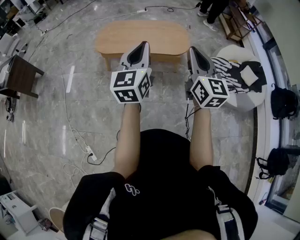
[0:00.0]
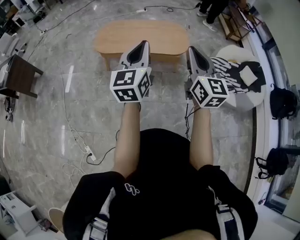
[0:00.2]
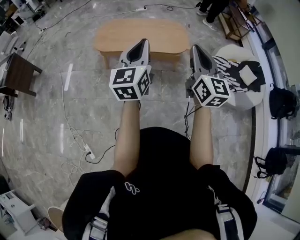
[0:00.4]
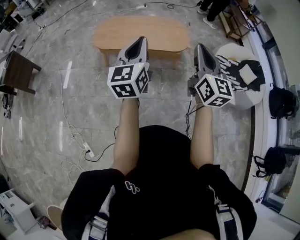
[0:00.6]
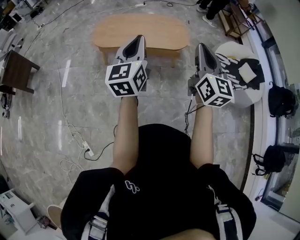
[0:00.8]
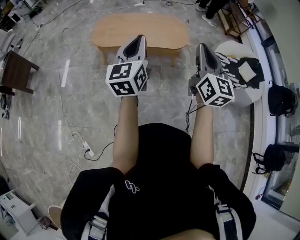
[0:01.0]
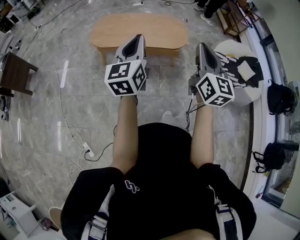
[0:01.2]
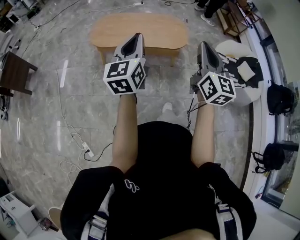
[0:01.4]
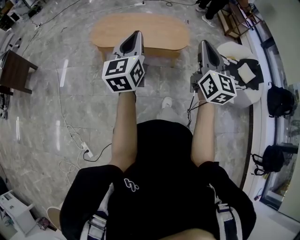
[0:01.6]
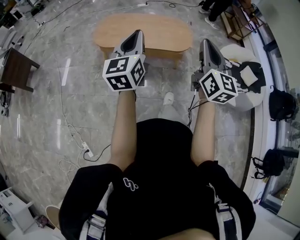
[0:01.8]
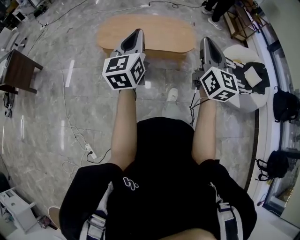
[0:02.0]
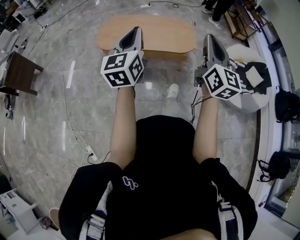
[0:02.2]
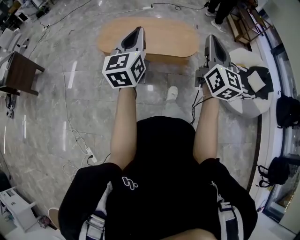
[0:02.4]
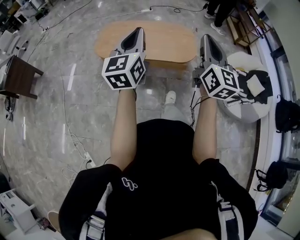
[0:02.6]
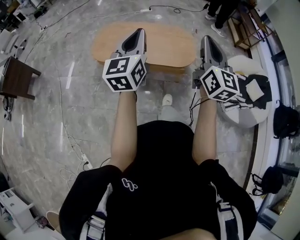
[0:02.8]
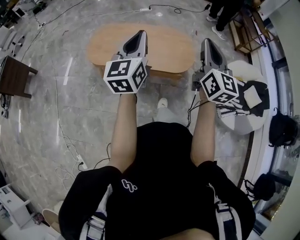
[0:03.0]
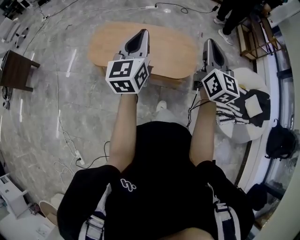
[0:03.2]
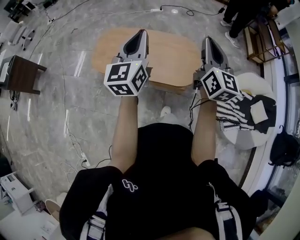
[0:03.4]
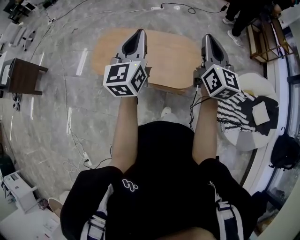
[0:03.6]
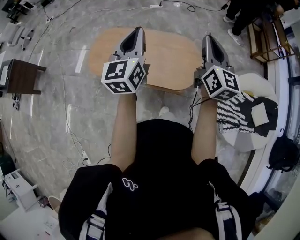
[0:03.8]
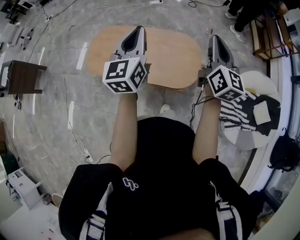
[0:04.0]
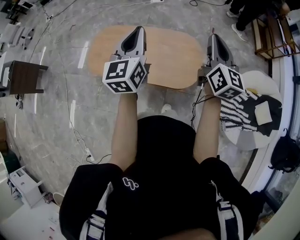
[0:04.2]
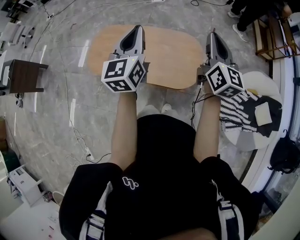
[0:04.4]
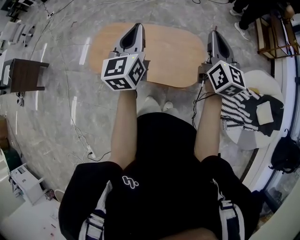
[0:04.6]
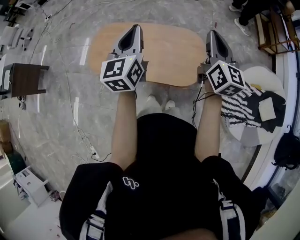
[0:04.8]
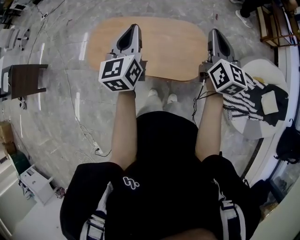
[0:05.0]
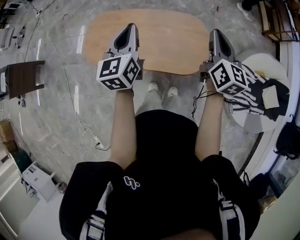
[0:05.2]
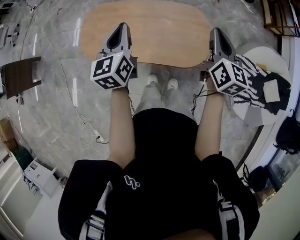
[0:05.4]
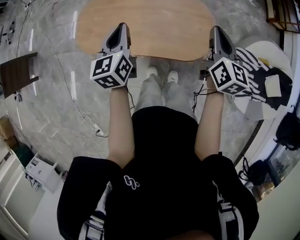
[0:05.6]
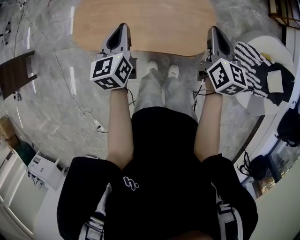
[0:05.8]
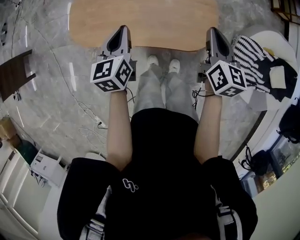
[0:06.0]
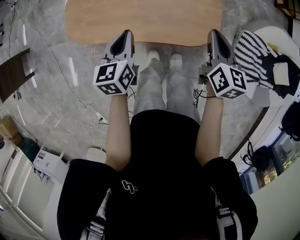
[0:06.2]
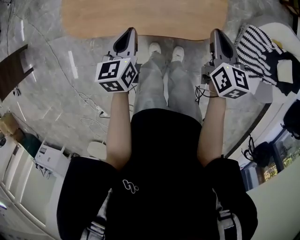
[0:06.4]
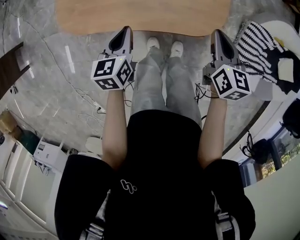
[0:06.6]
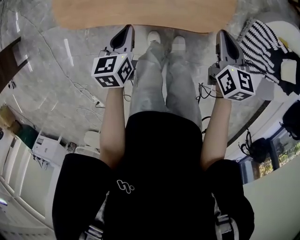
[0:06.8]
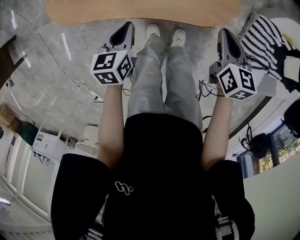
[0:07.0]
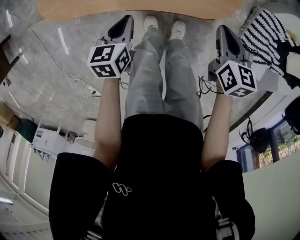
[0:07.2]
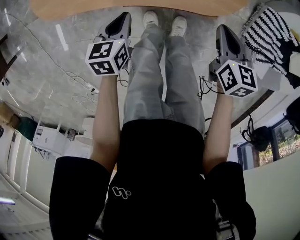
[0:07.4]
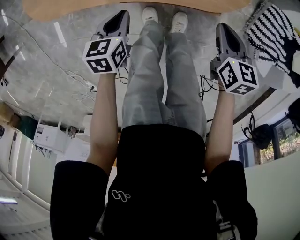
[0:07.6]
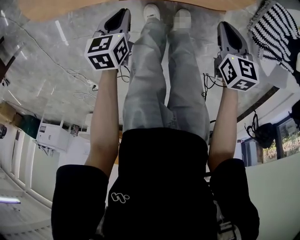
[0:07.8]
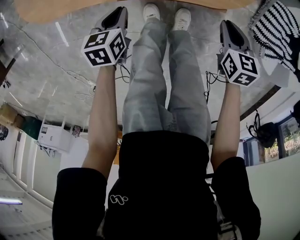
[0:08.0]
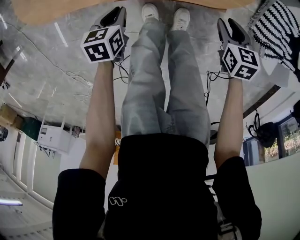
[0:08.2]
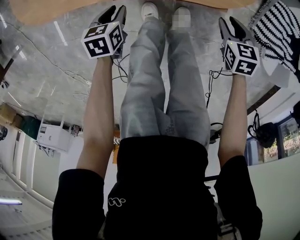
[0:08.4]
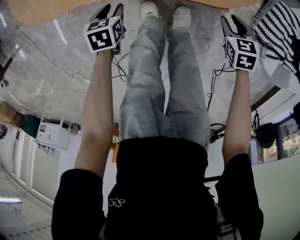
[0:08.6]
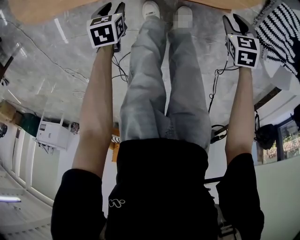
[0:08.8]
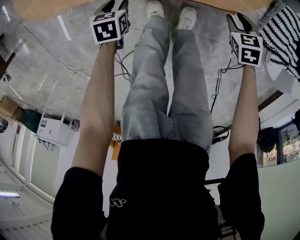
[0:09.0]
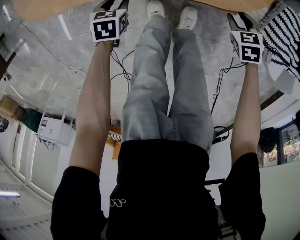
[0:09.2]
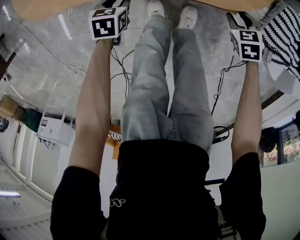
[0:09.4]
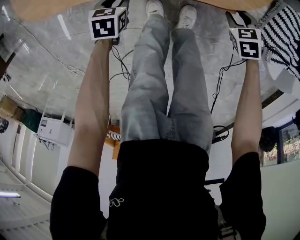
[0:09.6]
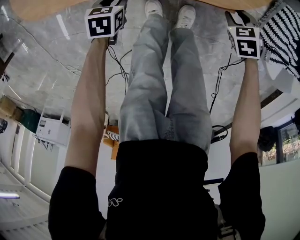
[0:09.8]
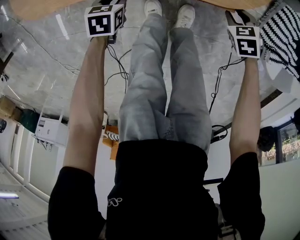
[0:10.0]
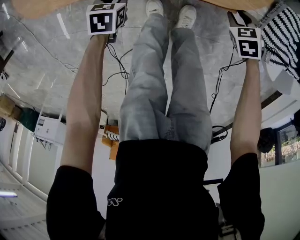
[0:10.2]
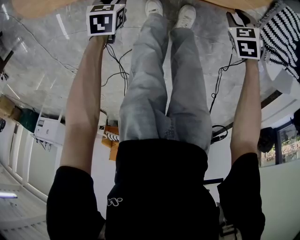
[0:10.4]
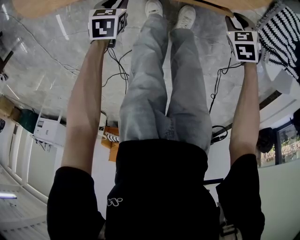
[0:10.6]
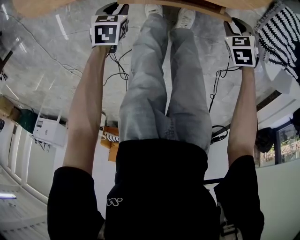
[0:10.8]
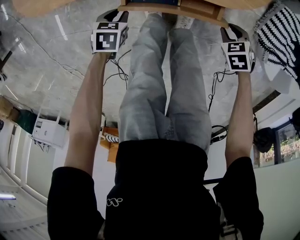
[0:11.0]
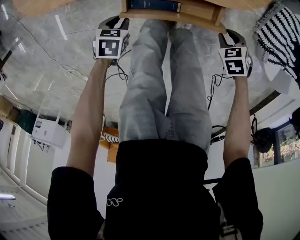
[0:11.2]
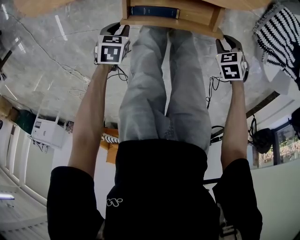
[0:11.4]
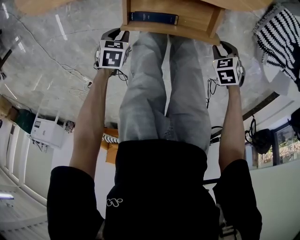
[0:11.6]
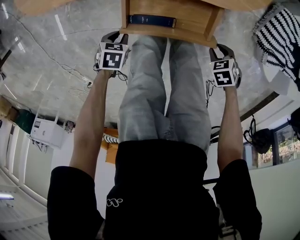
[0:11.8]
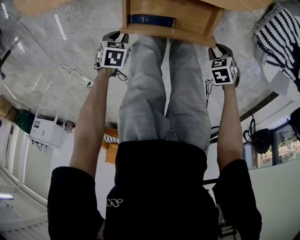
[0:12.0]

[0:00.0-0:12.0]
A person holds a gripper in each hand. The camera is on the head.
0.0 to 1.6 s: The left gripper moves to the left, approximately 5 cm.
1.6 to 3.0 s: The two grippers go about 25 cm forward.
3.0 to 4.4 s: Both grippers move forward, some 30 cm.
4.4 to 6.0 s: Both grippers travel together downward, roughly 25 cm. The right gripper rotates roughly 30 degrees. The left gripper turns by some 30 degrees.
6.0 to 7.6 s: The left gripper moves downward, roughly 30 cm, and rotates some 30 degrees, while the right gripper goes approximately 30 cm downward and backward, and swivels roughly 30 degrees.
7.6 to 9.0 s: Both grippers travel together downward, some 15 cm. The right gripper rotates roughly 40 degrees, and opens its fingers; the left gripper opens its fingers.
9.0 to 10.4 s: The grippers stay close to where they were, moving slightly.
10.4 to 12.0 s: The left gripper ends up roughly 20 cm from where it was; the right gripper ends up roughly 20 cm from where it was.

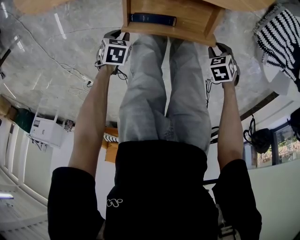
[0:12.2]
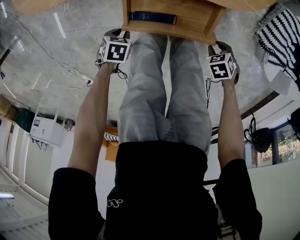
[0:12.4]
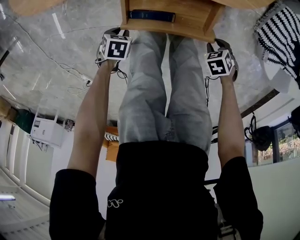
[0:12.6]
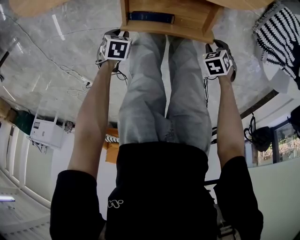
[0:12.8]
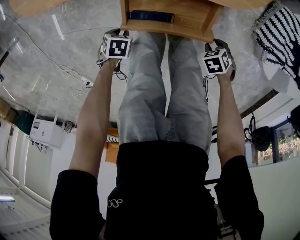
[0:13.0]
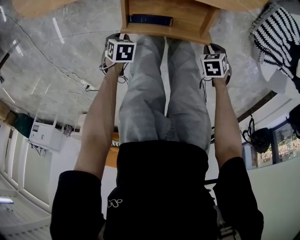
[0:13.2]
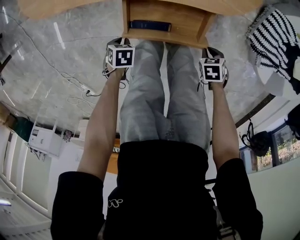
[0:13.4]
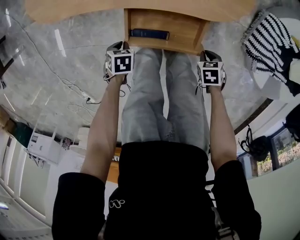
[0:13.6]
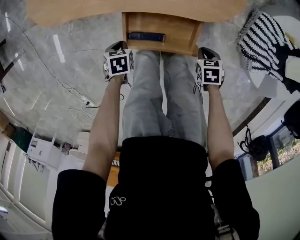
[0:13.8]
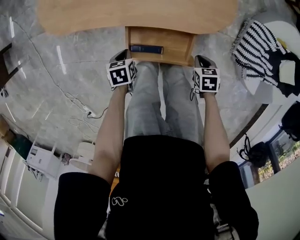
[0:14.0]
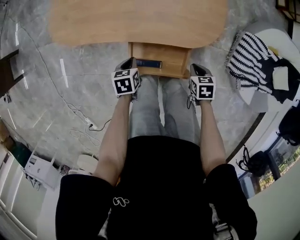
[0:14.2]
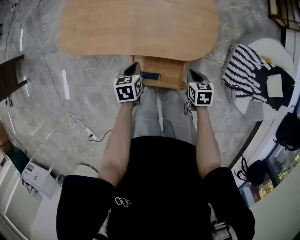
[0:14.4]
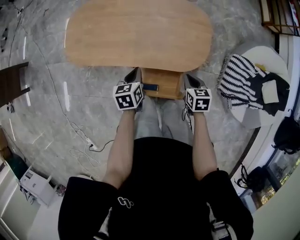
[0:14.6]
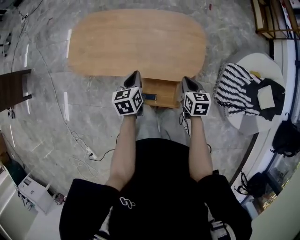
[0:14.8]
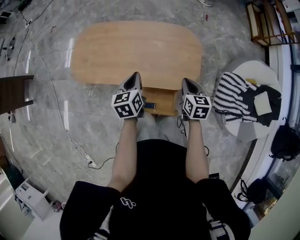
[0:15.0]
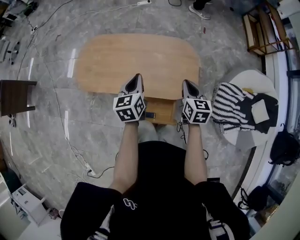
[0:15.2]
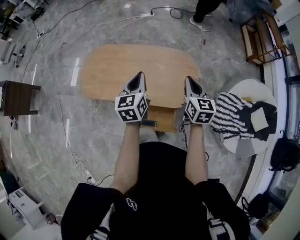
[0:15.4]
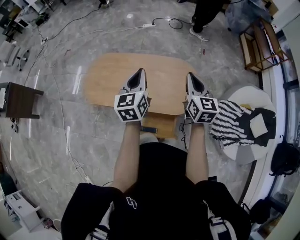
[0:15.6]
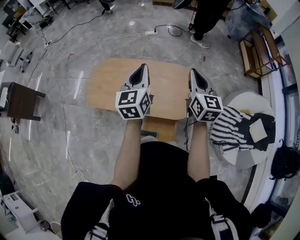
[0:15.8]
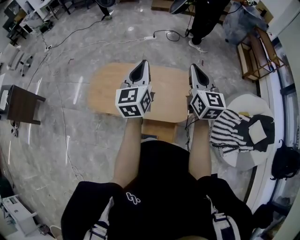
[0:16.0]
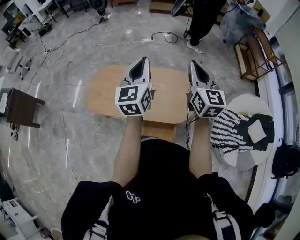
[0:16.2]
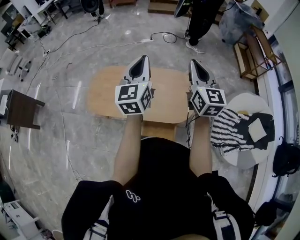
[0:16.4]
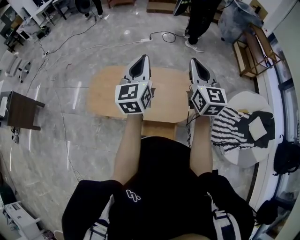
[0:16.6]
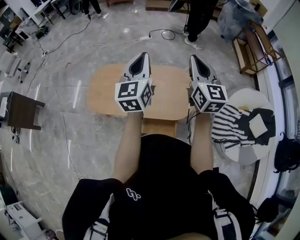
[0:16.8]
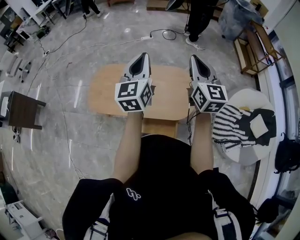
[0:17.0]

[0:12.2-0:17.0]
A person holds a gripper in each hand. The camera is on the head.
12.2 to 13.8 s: The left gripper ends up some 10 cm from where it was, and turns by about 20 degrees. The right gripper shifts by approximately 10 cm, swivels approximately 30 degrees, and closes up.
13.8 to 15.4 s: Both grippers move upward, about 50 cm. The right gripper tips its fingers upward by roughly 60 degrees. The left gripper angles its fingers upward, by approximately 60 degrees.
15.4 to 17.0 s: Both grippers move upward, about 20 cm. The right gripper swivels roughly 20 degrees. Meanwhile the left gripper rotates roughly 20 degrees.

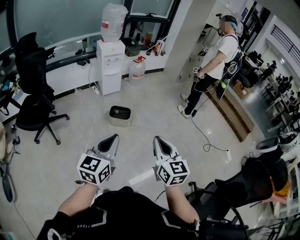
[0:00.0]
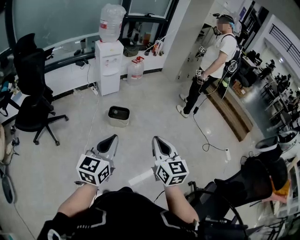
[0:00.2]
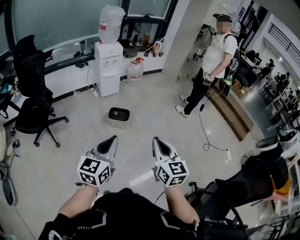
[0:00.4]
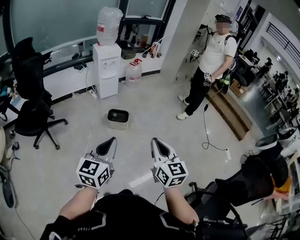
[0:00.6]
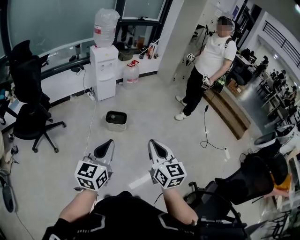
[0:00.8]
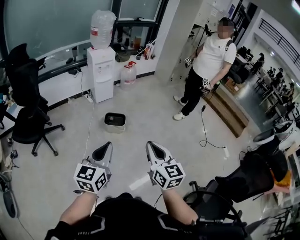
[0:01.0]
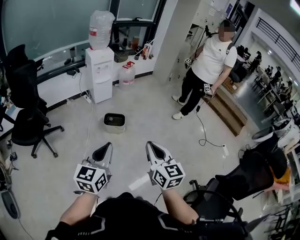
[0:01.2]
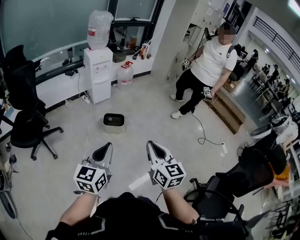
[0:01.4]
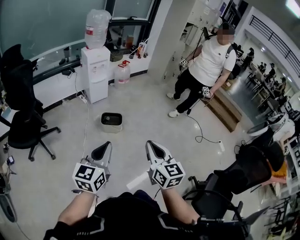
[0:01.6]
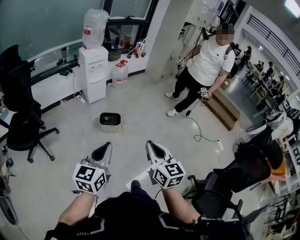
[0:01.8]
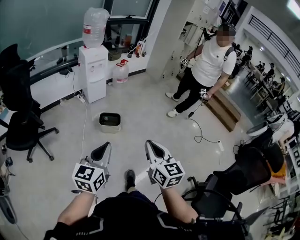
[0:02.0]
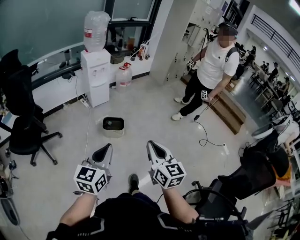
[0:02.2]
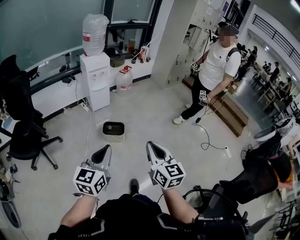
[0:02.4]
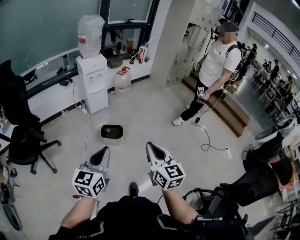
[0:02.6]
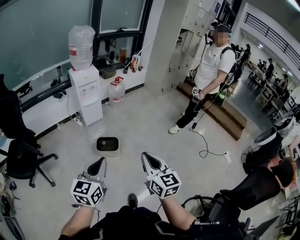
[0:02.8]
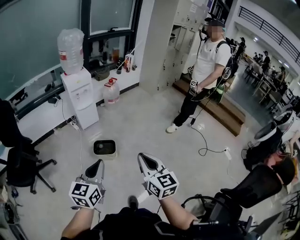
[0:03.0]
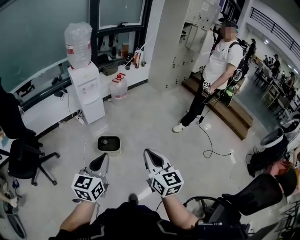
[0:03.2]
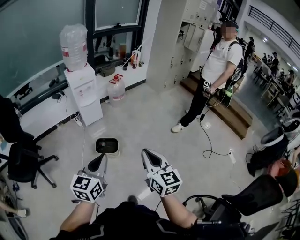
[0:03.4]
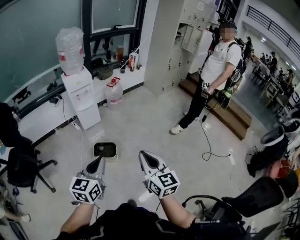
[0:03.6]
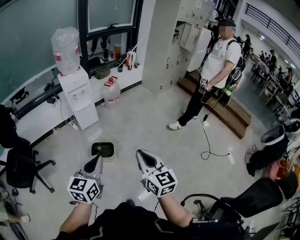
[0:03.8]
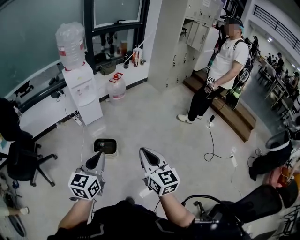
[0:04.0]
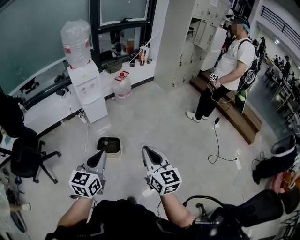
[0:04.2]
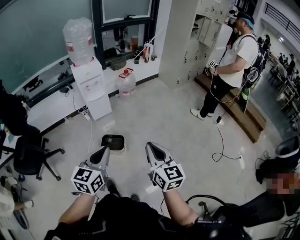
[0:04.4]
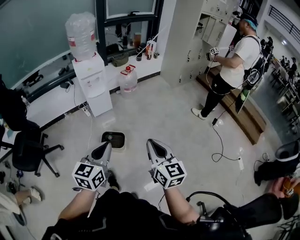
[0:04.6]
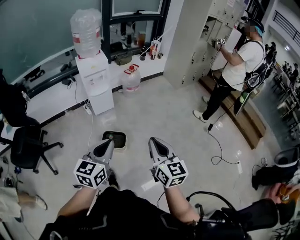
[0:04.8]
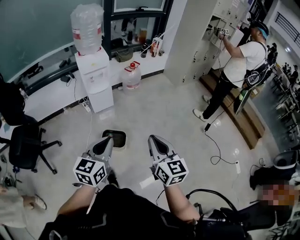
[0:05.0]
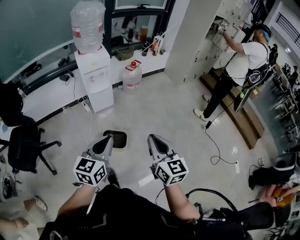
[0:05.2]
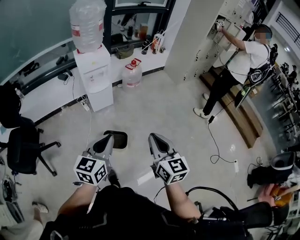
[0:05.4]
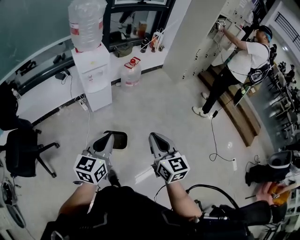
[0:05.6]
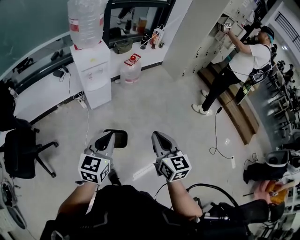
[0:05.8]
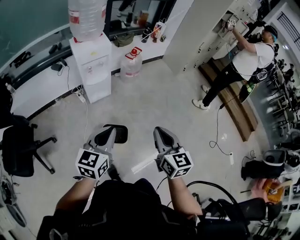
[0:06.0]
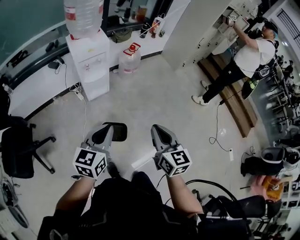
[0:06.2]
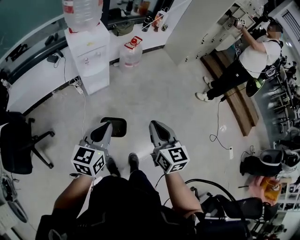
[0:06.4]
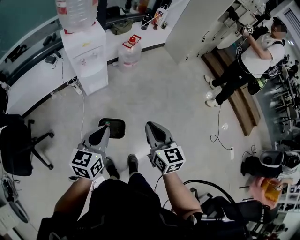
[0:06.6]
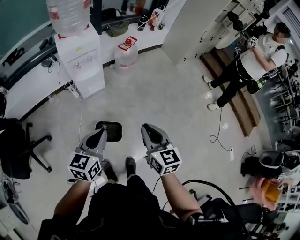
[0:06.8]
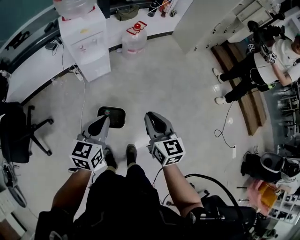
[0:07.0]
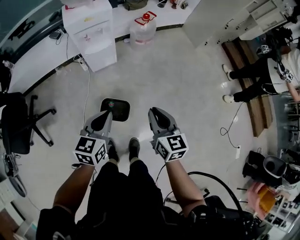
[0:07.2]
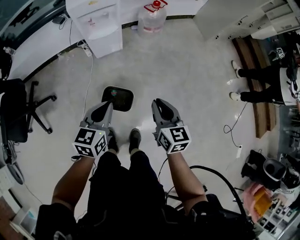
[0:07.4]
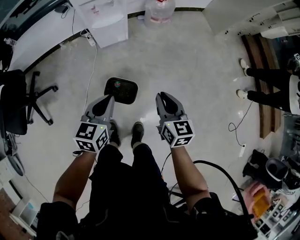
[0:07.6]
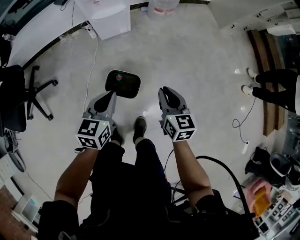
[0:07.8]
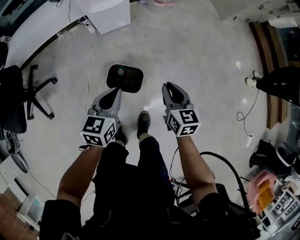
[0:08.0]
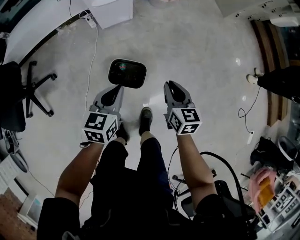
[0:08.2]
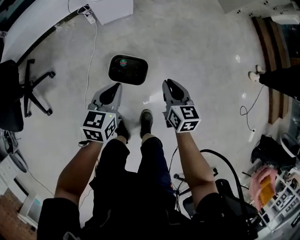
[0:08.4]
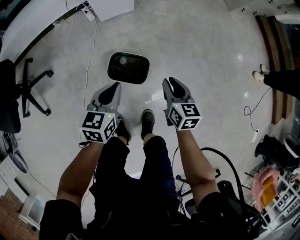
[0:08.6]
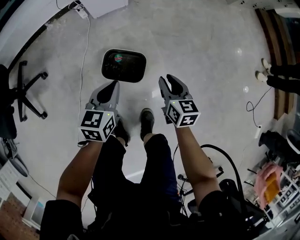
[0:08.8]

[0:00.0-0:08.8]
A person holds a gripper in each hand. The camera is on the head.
0.0 to 1.4 s: Both grippers travel together to the left, approximately 5 cm.
1.4 to 3.0 s: The grippers both shift forward by roughly 20 cm.
3.0 to 4.4 s: The grippers both shift forward and to the right by some 15 cm.
4.4 to 5.8 s: The grippers both shift forward and to the left by about 25 cm.
5.8 to 7.4 s: The grippers both shift downward and forward by roughly 25 cm.
7.4 to 8.8 s: The grippers both shift downward by some 30 cm.
